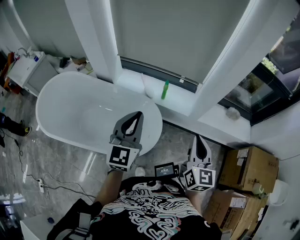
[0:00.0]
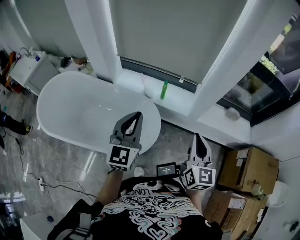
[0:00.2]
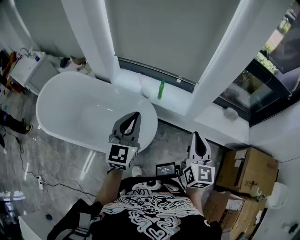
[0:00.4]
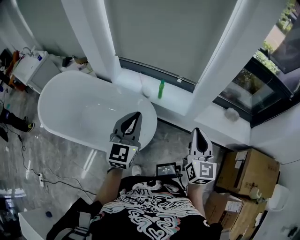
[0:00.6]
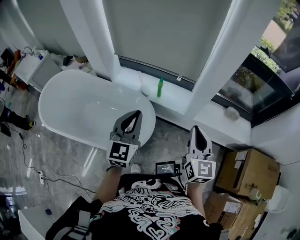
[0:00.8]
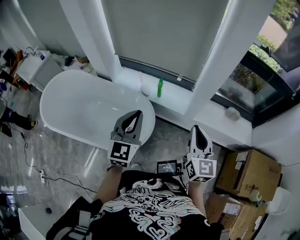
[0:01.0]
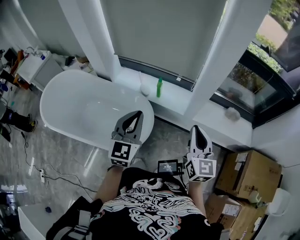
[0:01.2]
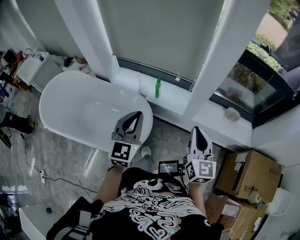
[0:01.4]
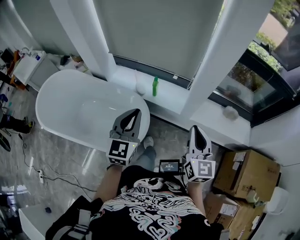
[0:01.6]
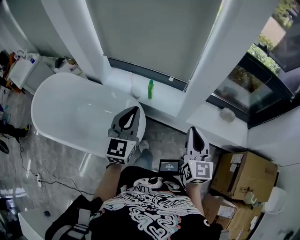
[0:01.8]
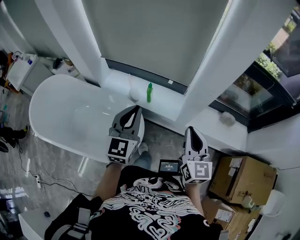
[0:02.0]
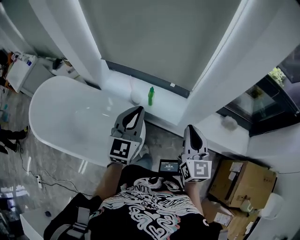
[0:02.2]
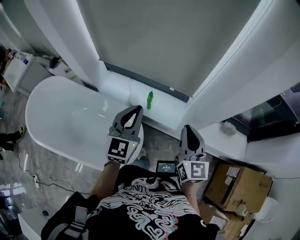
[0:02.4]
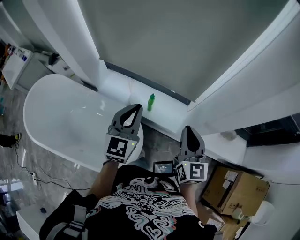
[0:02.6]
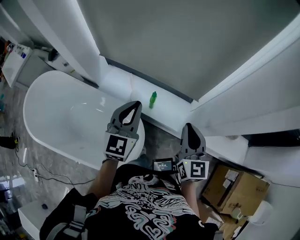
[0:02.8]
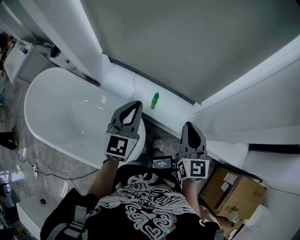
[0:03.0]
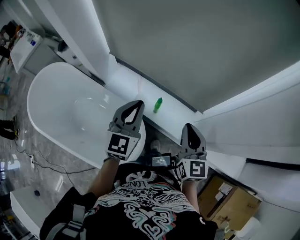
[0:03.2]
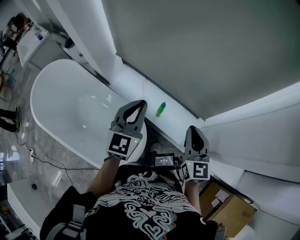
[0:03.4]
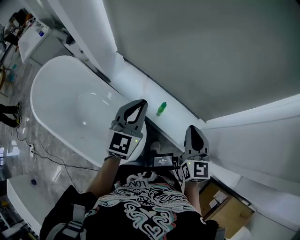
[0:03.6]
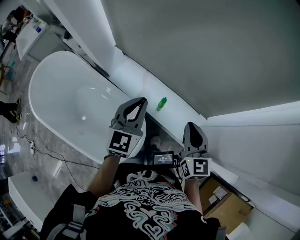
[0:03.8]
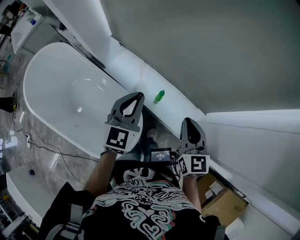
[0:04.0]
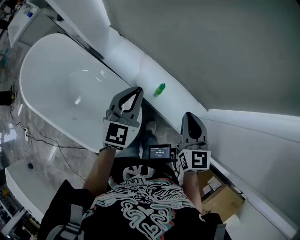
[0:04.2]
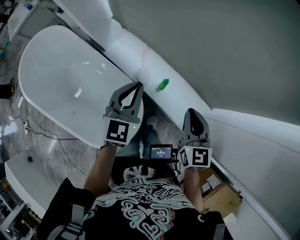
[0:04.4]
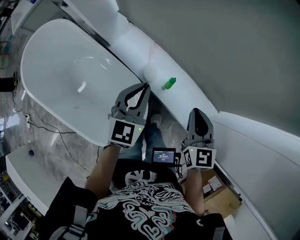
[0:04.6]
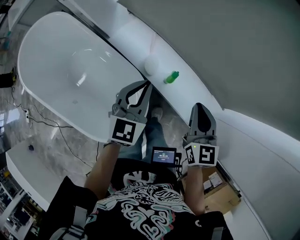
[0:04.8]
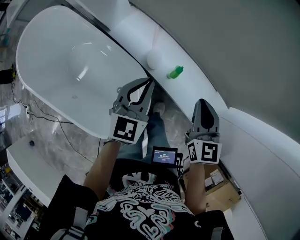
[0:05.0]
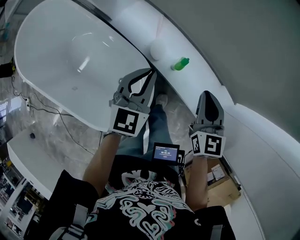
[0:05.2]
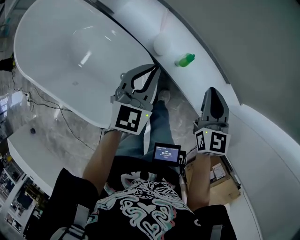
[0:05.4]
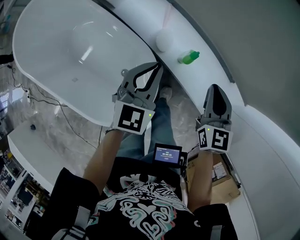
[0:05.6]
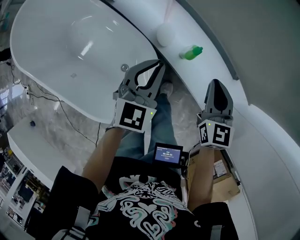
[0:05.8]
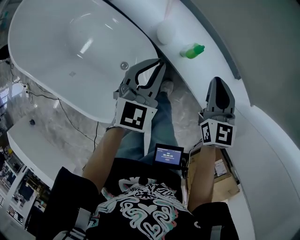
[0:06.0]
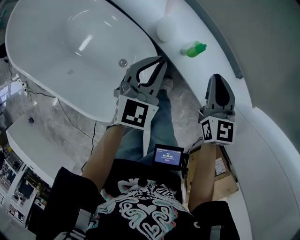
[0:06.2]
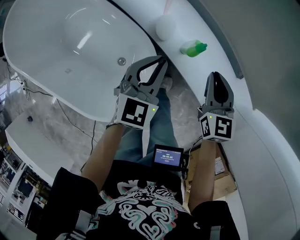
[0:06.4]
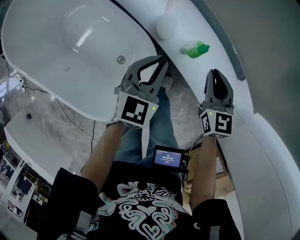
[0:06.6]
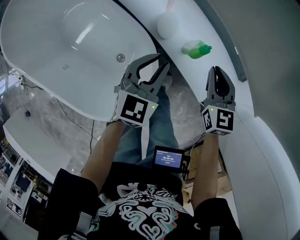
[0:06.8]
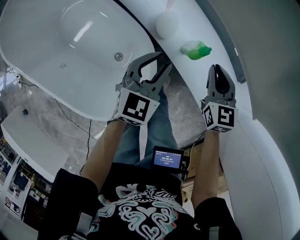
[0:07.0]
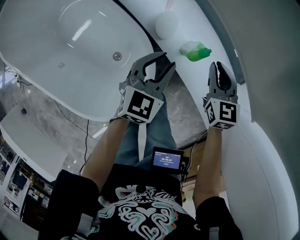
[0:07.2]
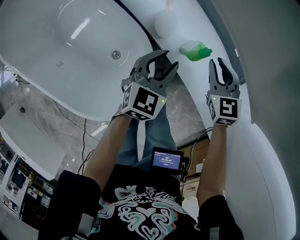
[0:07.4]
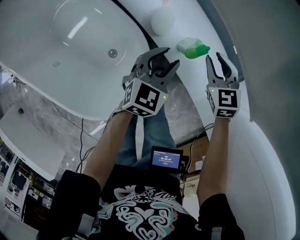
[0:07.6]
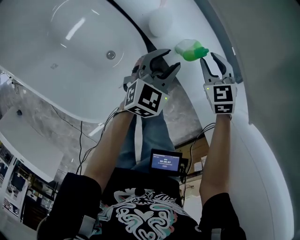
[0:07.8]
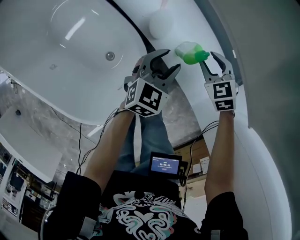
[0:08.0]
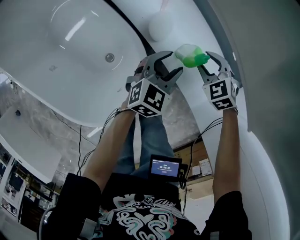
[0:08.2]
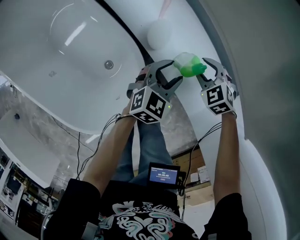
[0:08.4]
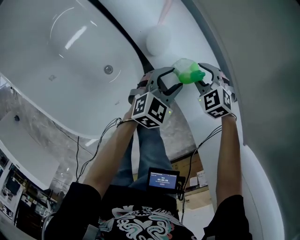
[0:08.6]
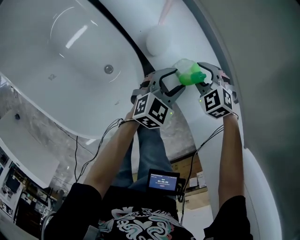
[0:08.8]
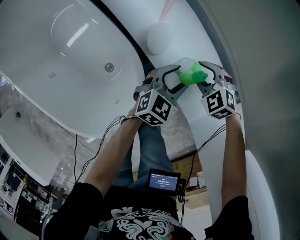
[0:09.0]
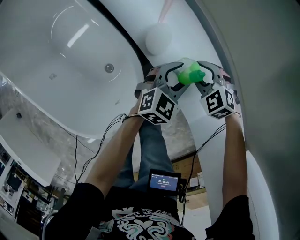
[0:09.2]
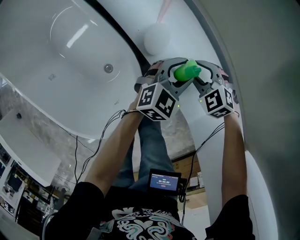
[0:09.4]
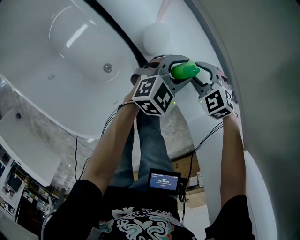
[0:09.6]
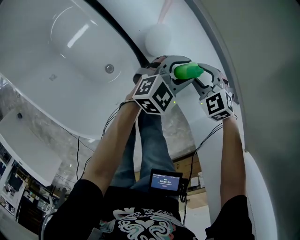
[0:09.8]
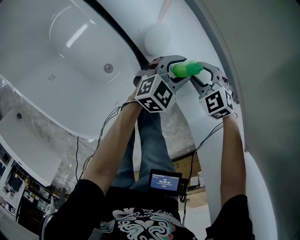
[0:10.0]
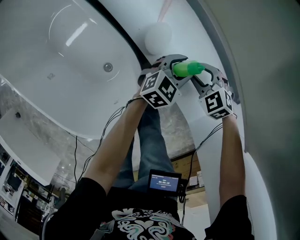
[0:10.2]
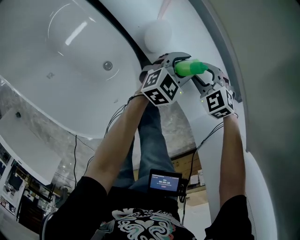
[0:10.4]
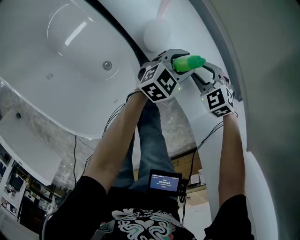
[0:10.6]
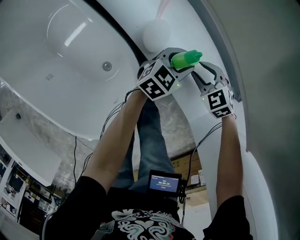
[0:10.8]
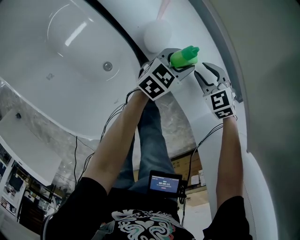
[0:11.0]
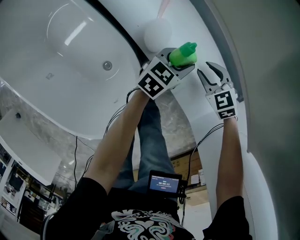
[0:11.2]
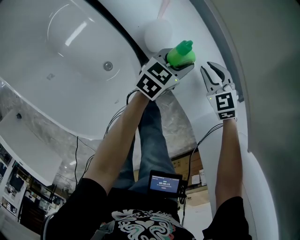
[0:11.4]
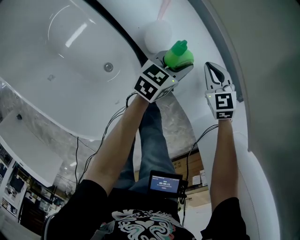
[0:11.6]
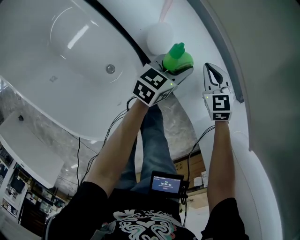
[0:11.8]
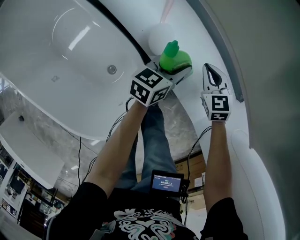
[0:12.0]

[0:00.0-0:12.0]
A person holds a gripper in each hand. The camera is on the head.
0:00.0 to 0:01.6: The left gripper shifts some 15 cm to the right. Meanwhile the right gripper travels to the right and forward by some 15 cm.
0:01.6 to 0:03.0: Both grippers move forward, roughly 30 cm.
0:03.0 to 0:04.4: Both grippers travel together forward and downward, approximately 15 cm.
0:04.4 to 0:06.0: Both grippers move downward, approximately 25 cm.
0:06.0 to 0:07.6: The right gripper travels downward and forward by roughly 20 cm, and swivels some 30 degrees. The left gripper travels downward by approximately 15 cm, and opens up.
0:07.6 to 0:09.0: The left gripper heads downward and to the right, covering roughly 10 cm, while the right gripper travels downward by roughly 10 cm, and rotates roughly 40 degrees.
0:09.0 to 0:10.4: The left gripper shifts by approximately 5 cm.
0:10.4 to 0:12.0: The left gripper is displaced to the left by about 5 cm, and rotates some 30 degrees; the right gripper shifts by roughly 5 cm, changes its angle by roughly 40 degrees, and closes its fingers.

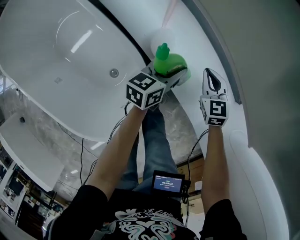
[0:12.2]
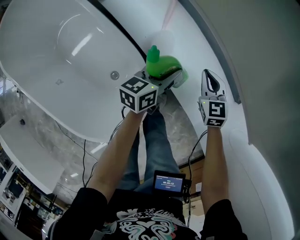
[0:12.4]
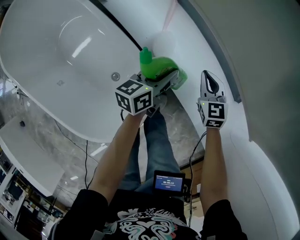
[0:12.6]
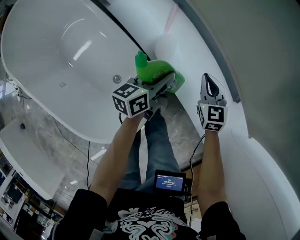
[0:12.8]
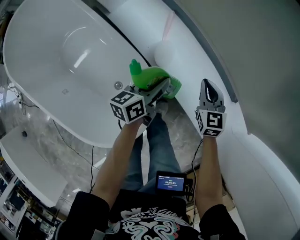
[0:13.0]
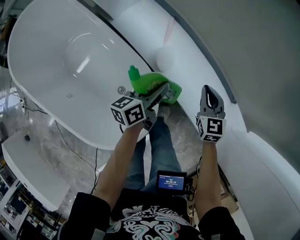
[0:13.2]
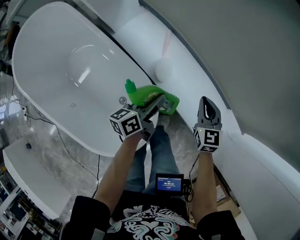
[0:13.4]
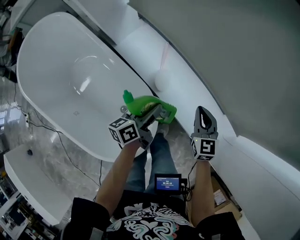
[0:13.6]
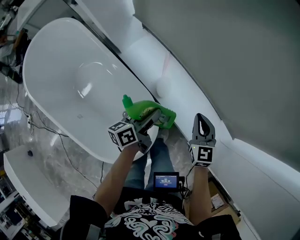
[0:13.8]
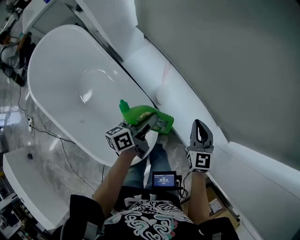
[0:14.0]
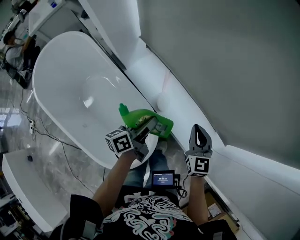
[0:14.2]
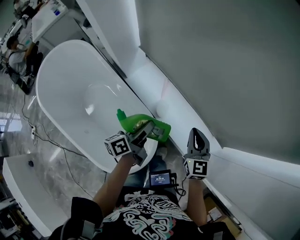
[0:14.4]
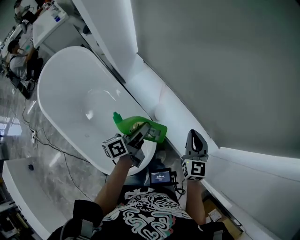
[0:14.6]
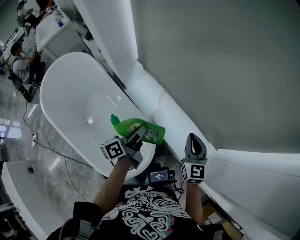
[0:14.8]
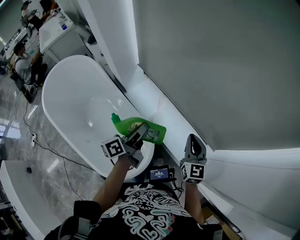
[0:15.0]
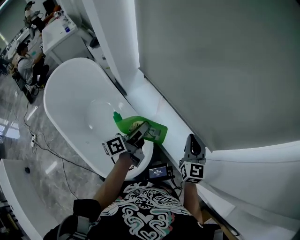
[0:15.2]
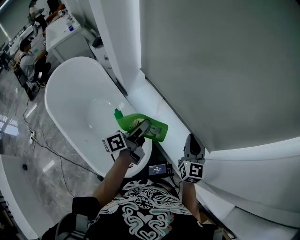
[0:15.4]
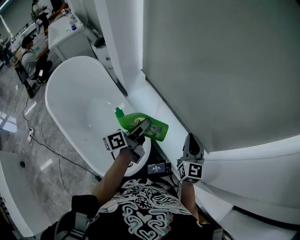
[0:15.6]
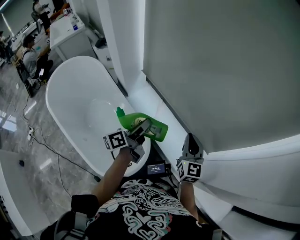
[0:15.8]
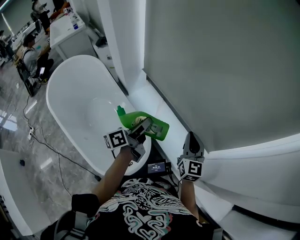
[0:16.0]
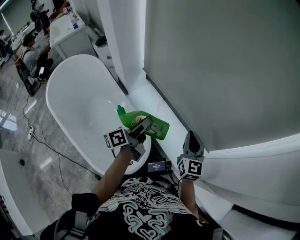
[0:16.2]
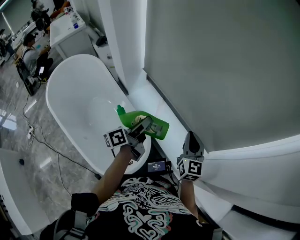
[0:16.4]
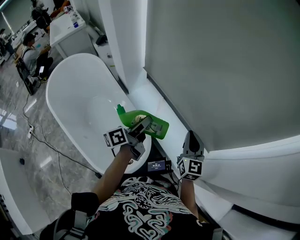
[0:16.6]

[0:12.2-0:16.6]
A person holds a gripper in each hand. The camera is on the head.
0:12.2 to 0:13.6: The right gripper is displaced upward and backward by approximately 20 cm. The left gripper shifts some 20 cm upward, to the left and backward, and turns by approximately 20 degrees.
0:13.6 to 0:15.2: The two grippers go about 30 cm upward.
0:15.2 to 0:16.6: The grippers stay close to where they were, moving slightly.

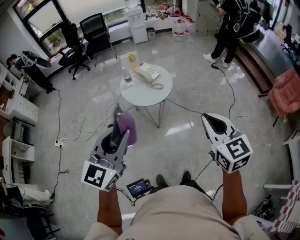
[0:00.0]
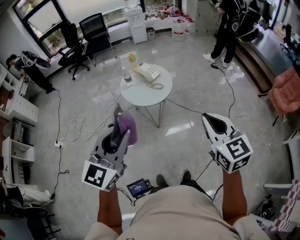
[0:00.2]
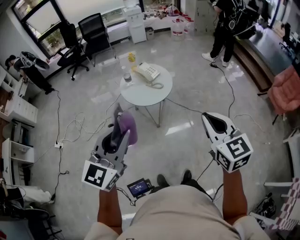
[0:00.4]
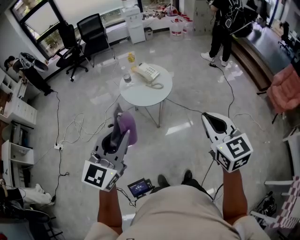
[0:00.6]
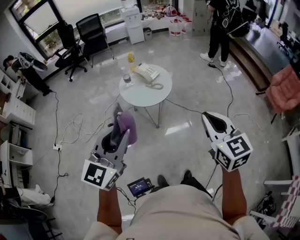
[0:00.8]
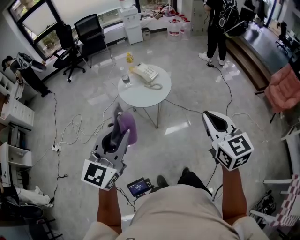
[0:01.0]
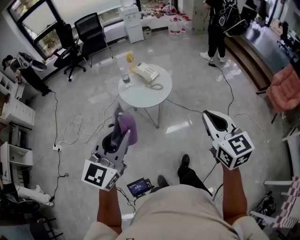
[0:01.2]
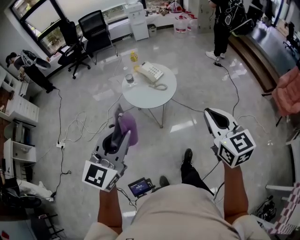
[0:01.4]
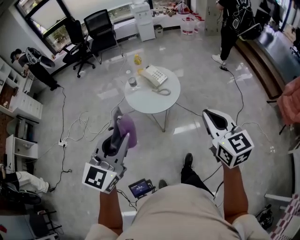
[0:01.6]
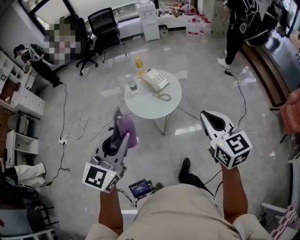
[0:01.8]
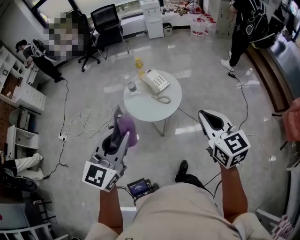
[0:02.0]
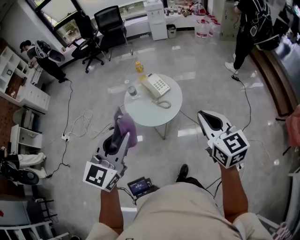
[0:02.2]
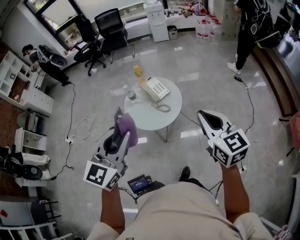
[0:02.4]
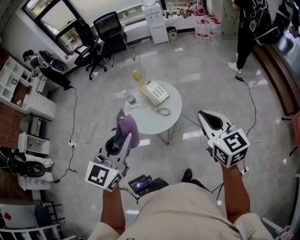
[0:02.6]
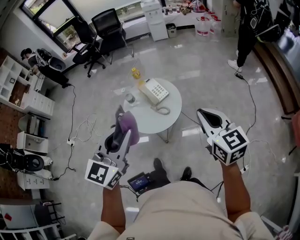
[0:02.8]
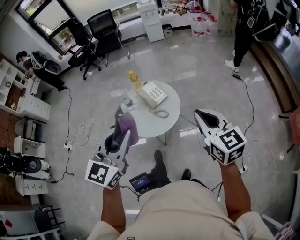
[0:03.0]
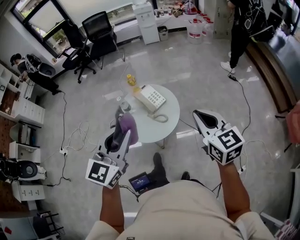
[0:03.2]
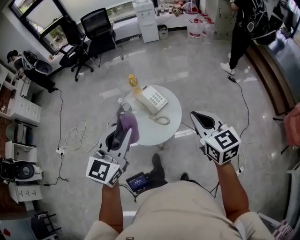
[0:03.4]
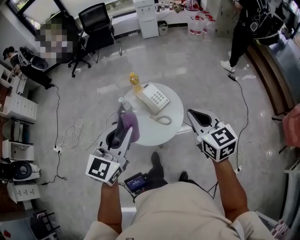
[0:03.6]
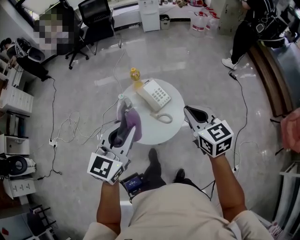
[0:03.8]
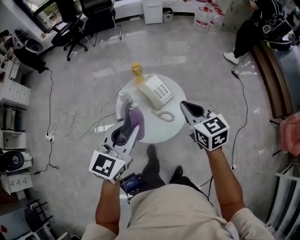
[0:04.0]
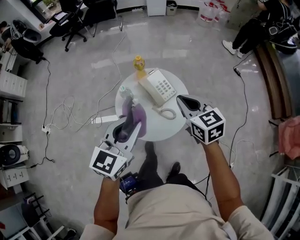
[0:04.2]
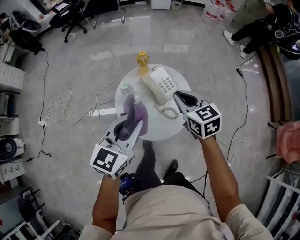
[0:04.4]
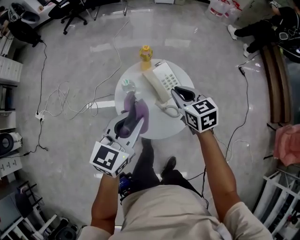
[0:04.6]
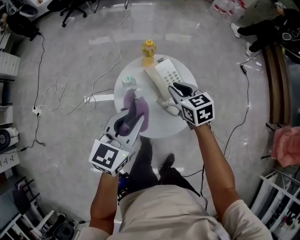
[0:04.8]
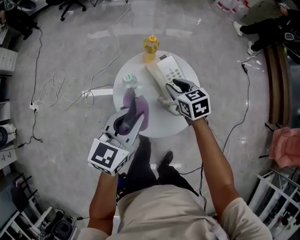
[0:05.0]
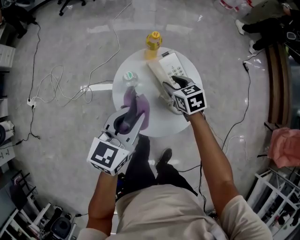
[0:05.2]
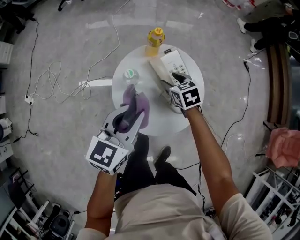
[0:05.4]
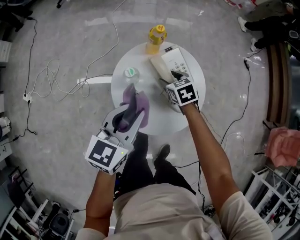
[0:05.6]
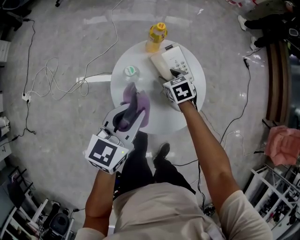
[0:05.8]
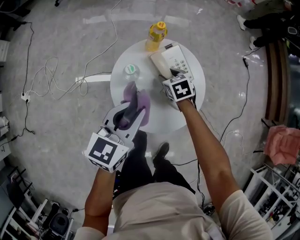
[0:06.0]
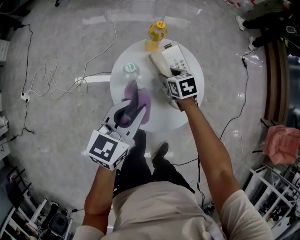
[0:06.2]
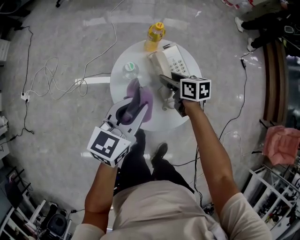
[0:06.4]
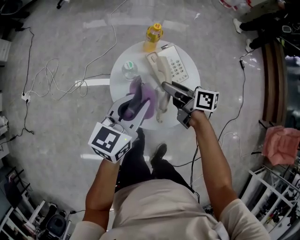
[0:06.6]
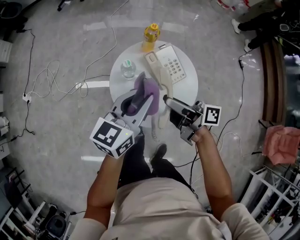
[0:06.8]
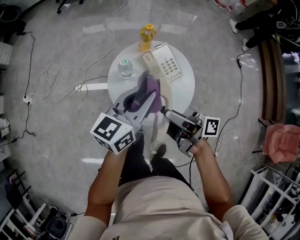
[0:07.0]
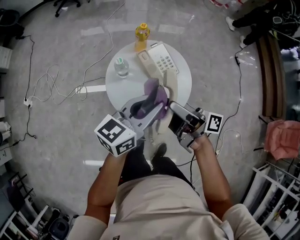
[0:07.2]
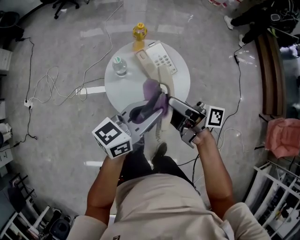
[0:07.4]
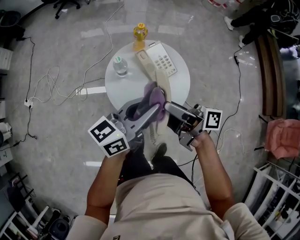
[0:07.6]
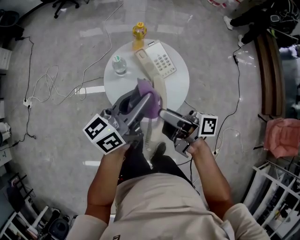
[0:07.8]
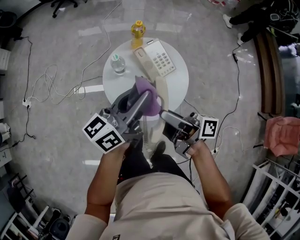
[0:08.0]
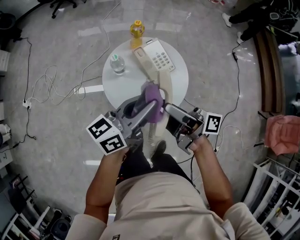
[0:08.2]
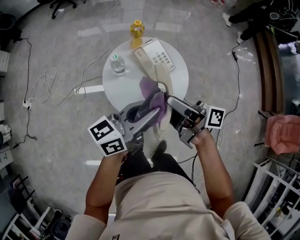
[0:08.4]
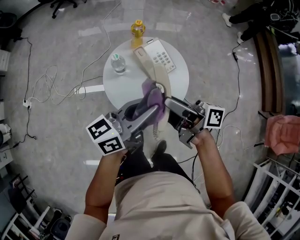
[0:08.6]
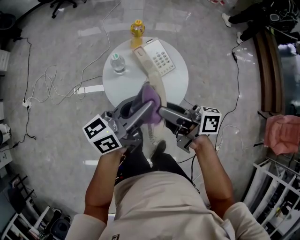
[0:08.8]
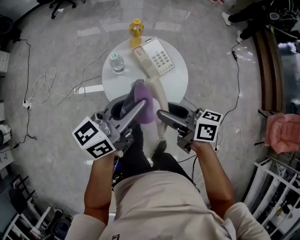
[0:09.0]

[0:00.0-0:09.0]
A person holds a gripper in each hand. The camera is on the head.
0:00.0 to 0:01.6: The two grippers go approximately 10 cm forward.
0:01.6 to 0:03.0: The left gripper travels forward and to the right by approximately 25 cm. Meanwhile the right gripper moves forward, roughly 25 cm.
0:03.0 to 0:04.4: The right gripper moves forward, to the left and downward, approximately 35 cm, while the left gripper goes about 30 cm forward, downward and to the left.
0:04.4 to 0:06.0: The right gripper is displaced downward by approximately 30 cm, swivels some 30 degrees, and opens up; the left gripper is displaced downward by approximately 15 cm.
0:06.0 to 0:07.6: The left gripper shifts about 15 cm upward, to the right and backward, and rotates roughly 30 degrees. The right gripper shifts some 35 cm upward and backward, and angles its fingers upward, by about 70 degrees.
0:07.6 to 0:09.0: The right gripper swivels about 30 degrees.
